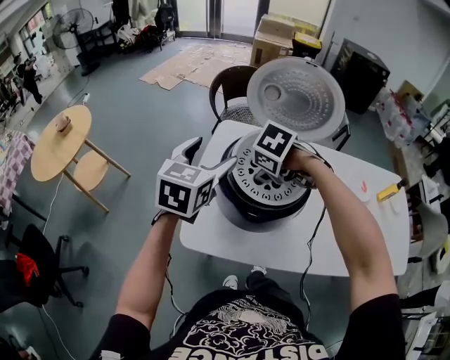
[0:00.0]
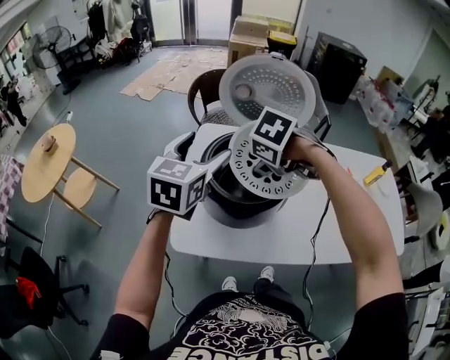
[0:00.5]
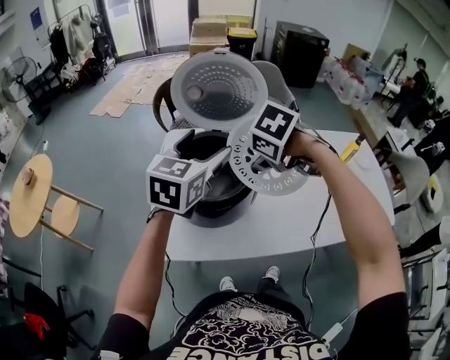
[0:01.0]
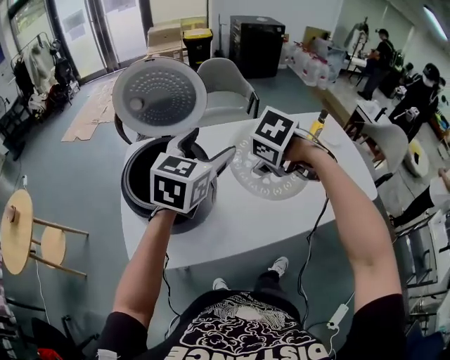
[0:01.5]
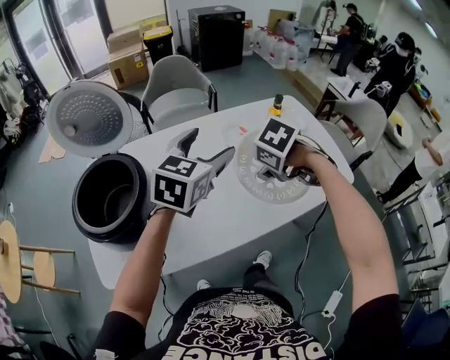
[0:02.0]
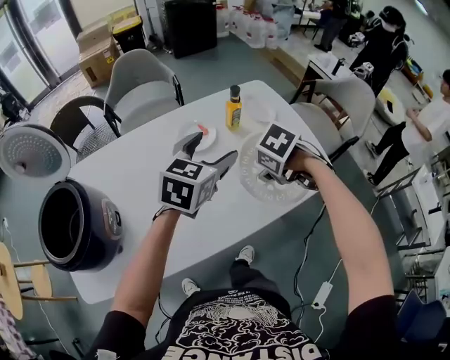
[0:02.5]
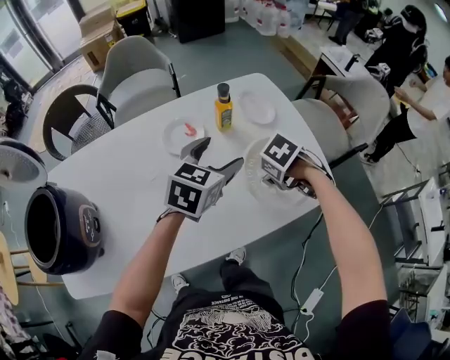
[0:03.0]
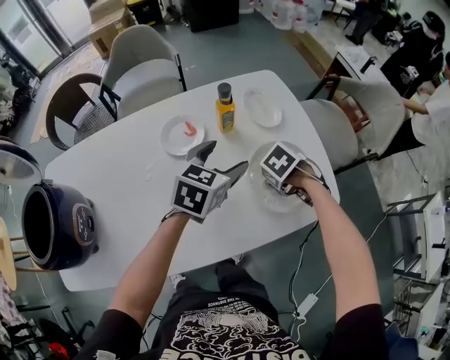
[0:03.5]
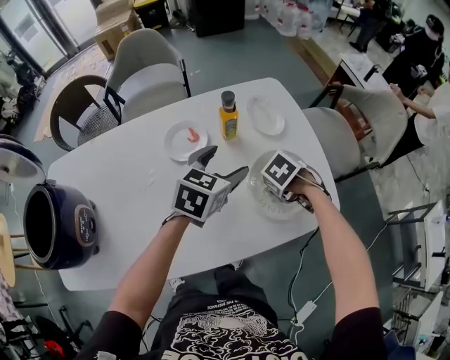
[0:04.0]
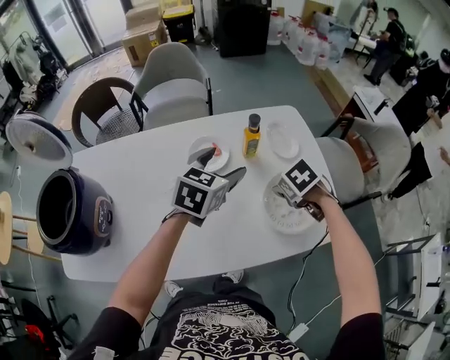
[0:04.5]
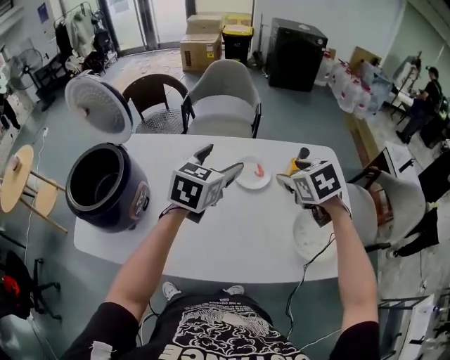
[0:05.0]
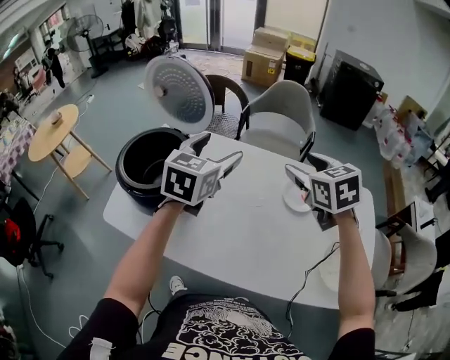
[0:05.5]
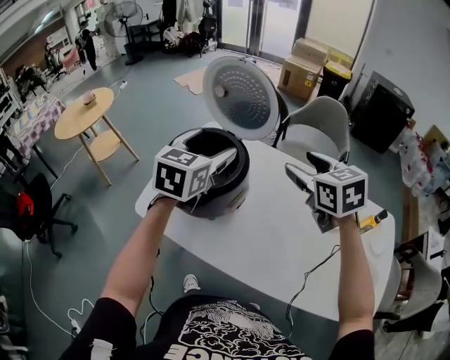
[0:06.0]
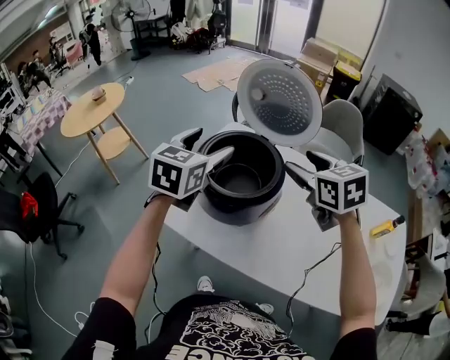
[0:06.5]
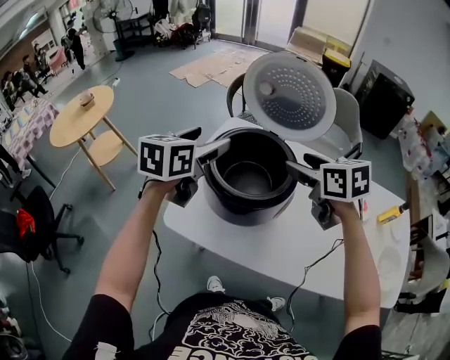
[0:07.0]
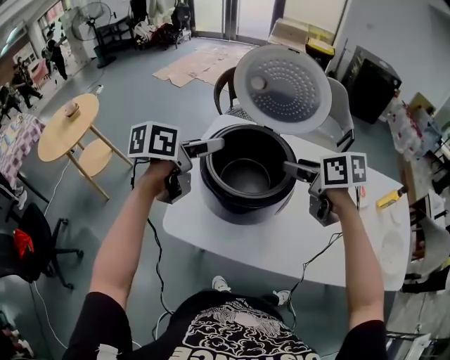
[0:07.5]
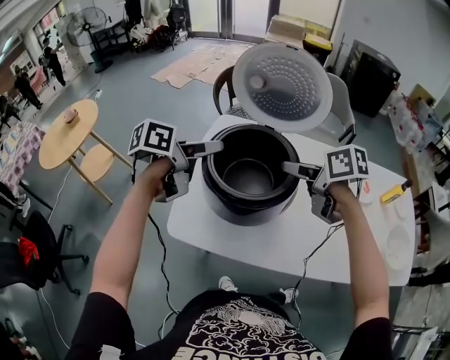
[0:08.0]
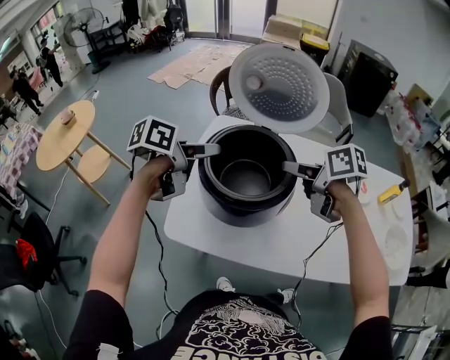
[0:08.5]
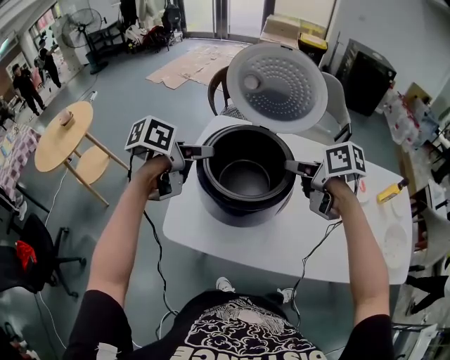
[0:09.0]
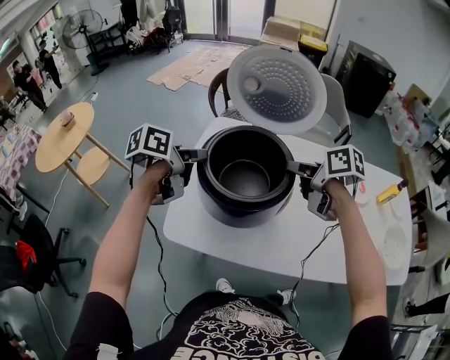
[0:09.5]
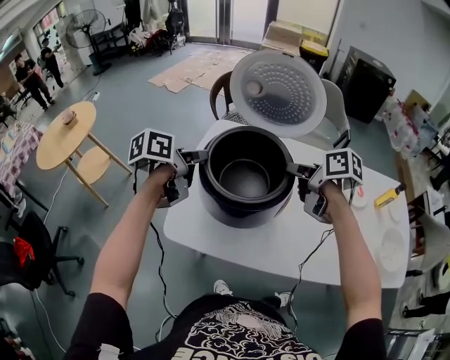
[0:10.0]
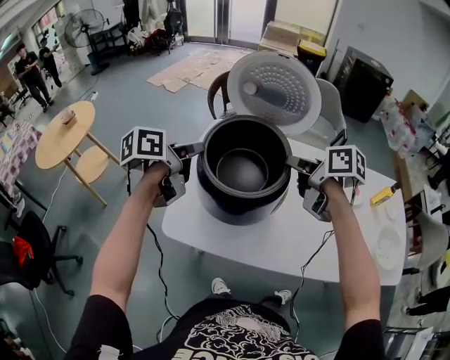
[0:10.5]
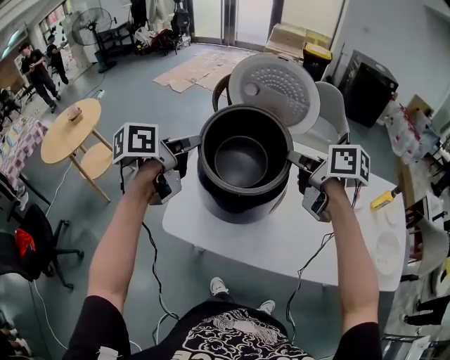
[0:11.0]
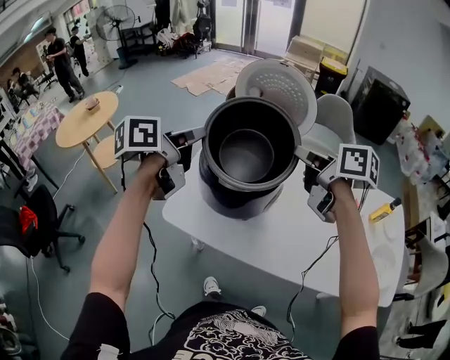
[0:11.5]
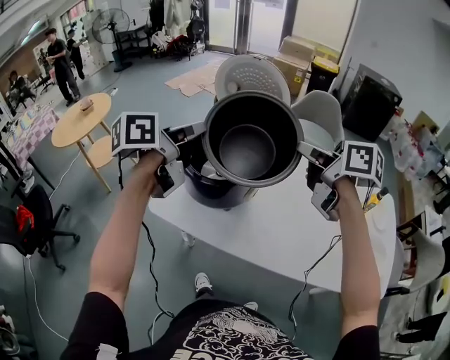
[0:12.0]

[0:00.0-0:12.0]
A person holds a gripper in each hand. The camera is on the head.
0:00.0 to 0:02.0: The pair of grippers is taken about 60 cm. The left gripper changes its angle by approximately 40 degrees. The right gripper rotates approximately 40 degrees.
0:02.0 to 0:04.0: The pair of grippers is taken about 40 cm.
0:04.0 to 0:06.0: Both grippers are carried about 60 cm. The right gripper points its fingers some 60 degrees further upward. The left gripper rotates approximately 50 degrees.
0:06.0 to 0:08.0: The grippers both shift to the left by approximately 25 cm. The left gripper swivels approximately 60 degrees. Meanwhile the right gripper twists approximately 40 degrees clockwise, seen from behind.
0:08.0 to 0:10.0: The left gripper closes, while the right gripper closes its fingers.
0:10.0 to 0:12.0: The left gripper travels upward, backward and to the right by about 25 cm, and turns by about 20 degrees. The right gripper shifts approximately 25 cm upward, to the right and backward.

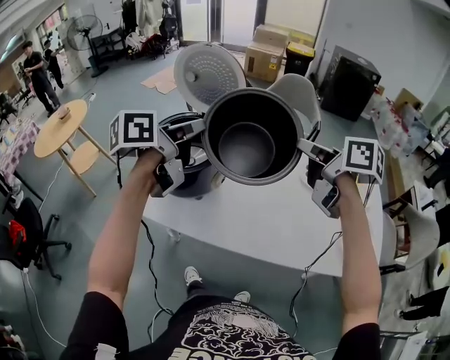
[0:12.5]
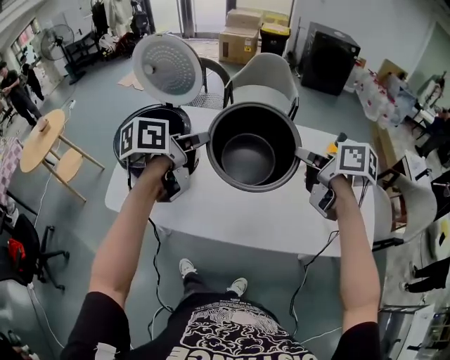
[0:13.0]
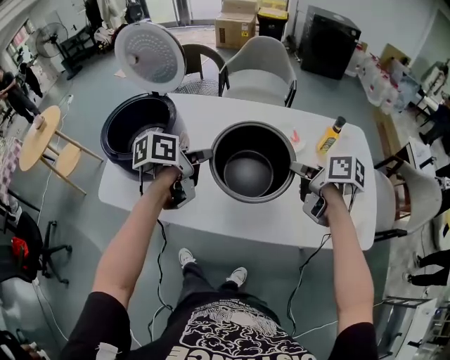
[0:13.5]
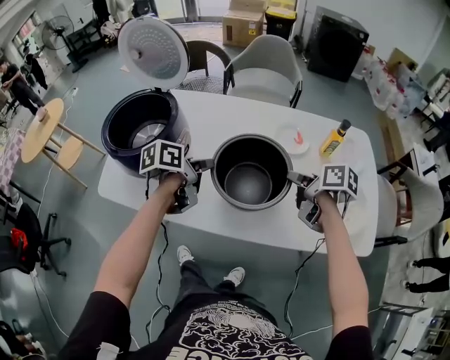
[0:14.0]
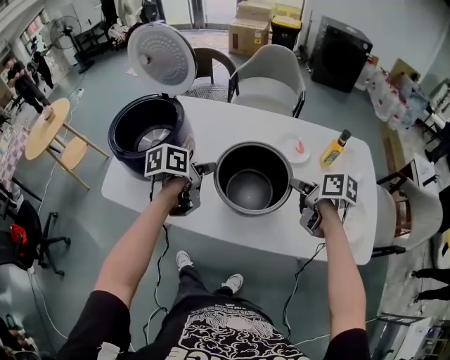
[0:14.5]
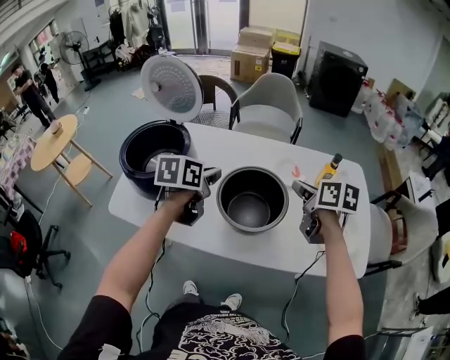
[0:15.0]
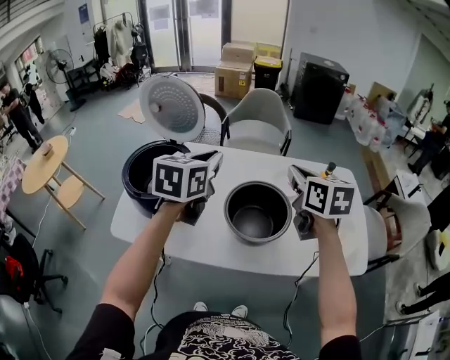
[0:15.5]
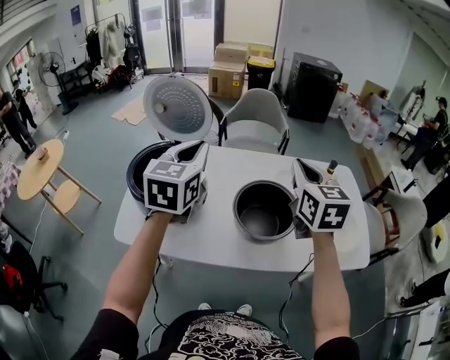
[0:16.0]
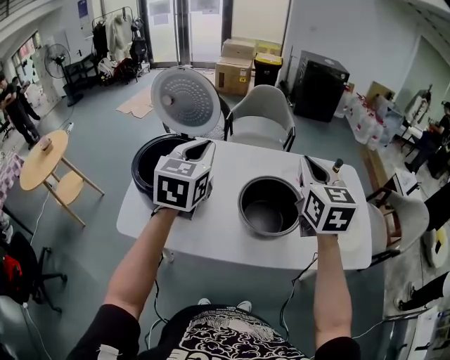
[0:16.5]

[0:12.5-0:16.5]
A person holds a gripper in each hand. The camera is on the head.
0:12.5 to 0:14.5: The two grippers go approximately 35 cm downward and to the right. The right gripper rotates roughly 20 degrees. Meanwhile the left gripper turns by some 20 degrees.
0:14.5 to 0:16.5: The grippers both shift upward and to the left by about 30 cm. The left gripper rolls clockwise, seen from behind, by some 50 degrees. The right gripper swivels about 60 degrees.

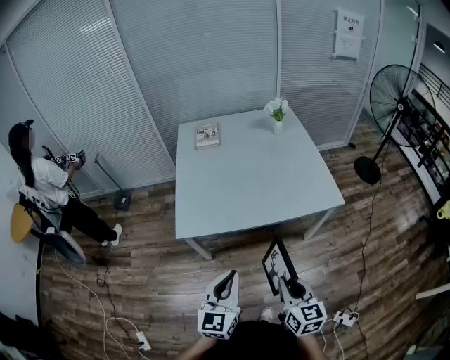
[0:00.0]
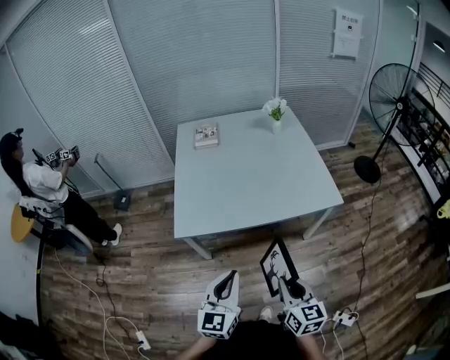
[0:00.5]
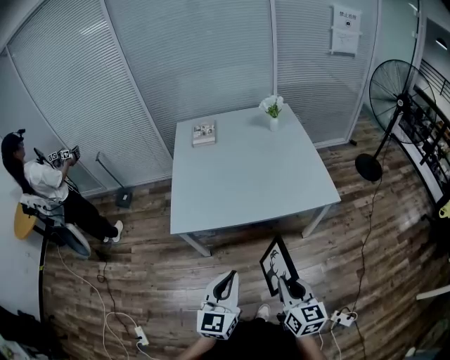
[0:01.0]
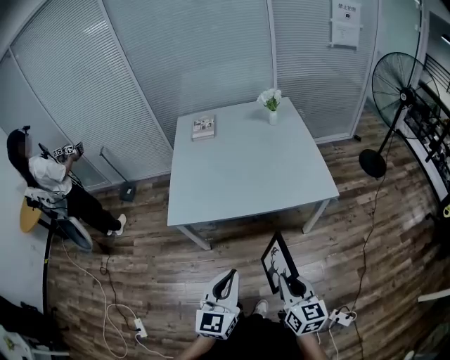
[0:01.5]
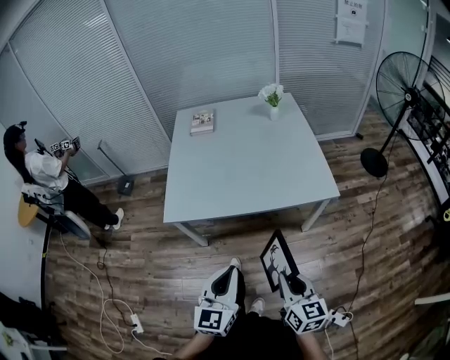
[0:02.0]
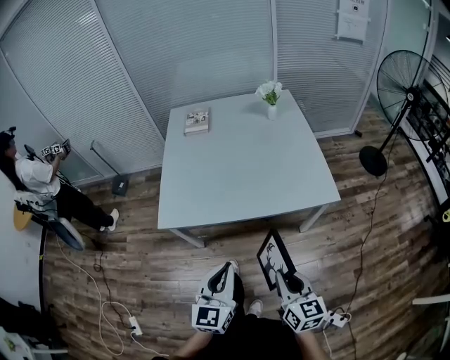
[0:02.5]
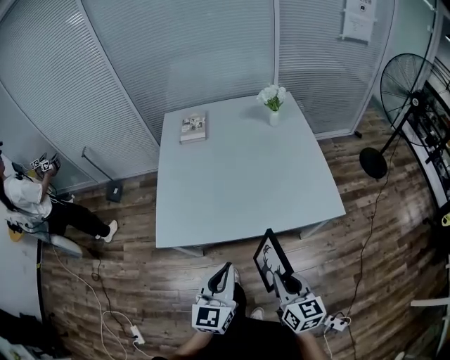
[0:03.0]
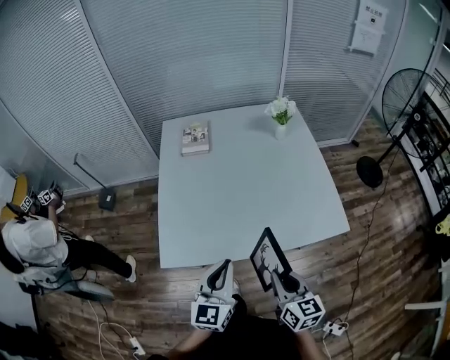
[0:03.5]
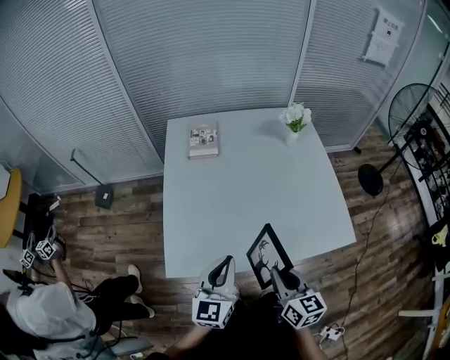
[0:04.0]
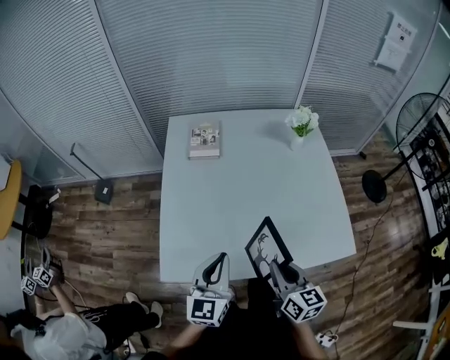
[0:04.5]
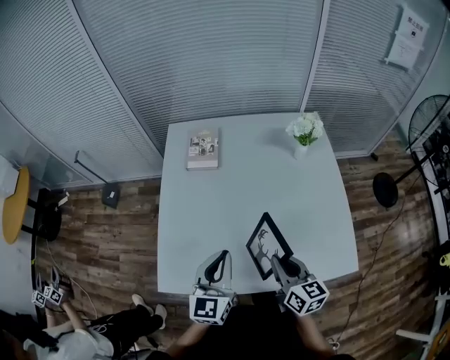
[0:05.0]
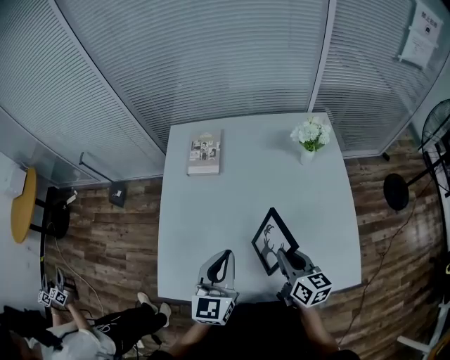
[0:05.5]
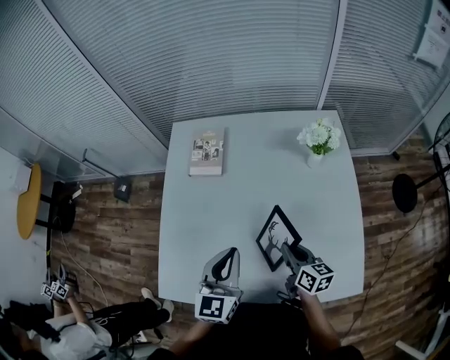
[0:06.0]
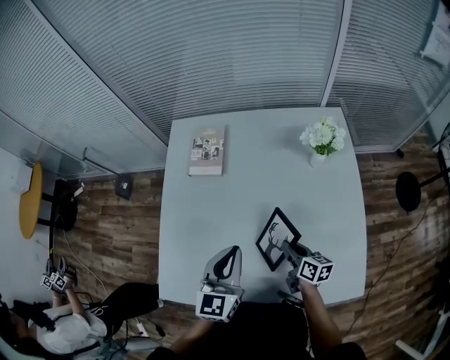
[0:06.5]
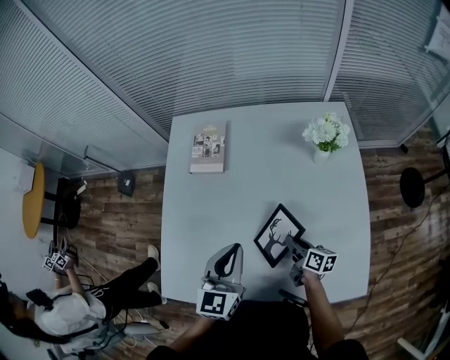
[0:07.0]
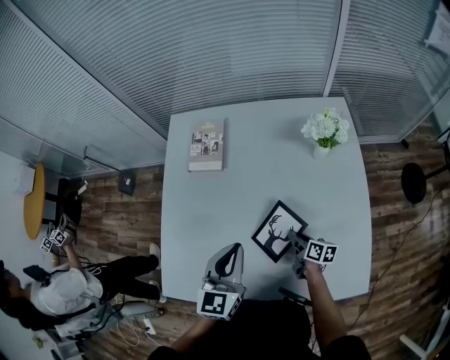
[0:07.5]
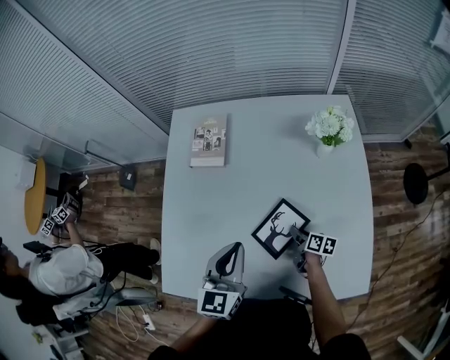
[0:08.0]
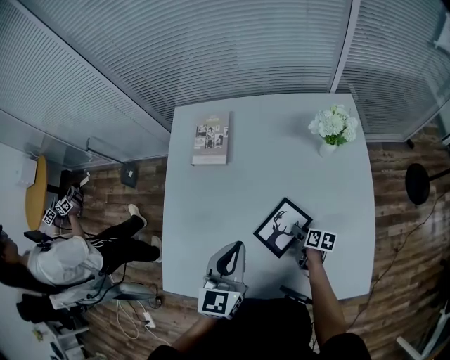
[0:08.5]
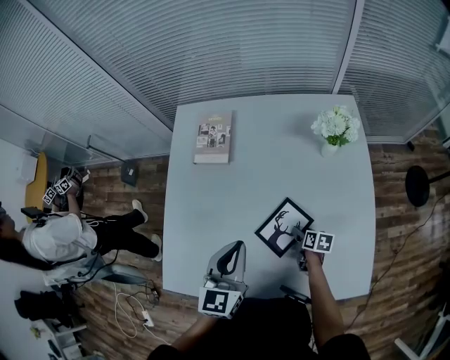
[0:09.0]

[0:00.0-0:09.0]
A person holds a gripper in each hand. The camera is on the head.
0:00.0 to 0:02.0: The two grippers go roughly 10 cm to the right.
0:02.0 to 0:04.5: The two grippers travel together, forward, about 40 cm.
0:04.5 to 0:07.0: The right gripper moves forward, downward and to the right, about 35 cm, and changes its angle by roughly 40 degrees; the left gripper heads forward and to the right, covering roughly 25 cm.
0:07.0 to 0:09.0: The right gripper moves downward, about 10 cm, swivels about 30 degrees, and opens up.

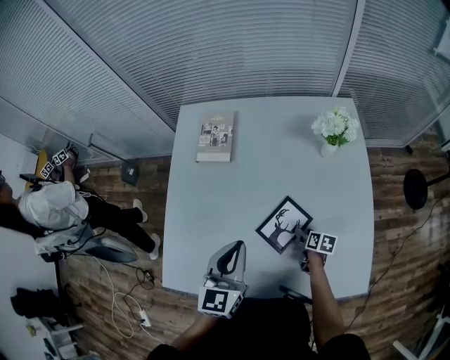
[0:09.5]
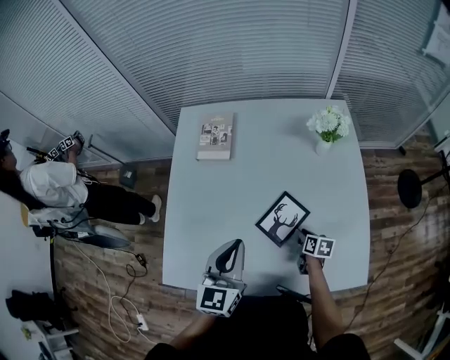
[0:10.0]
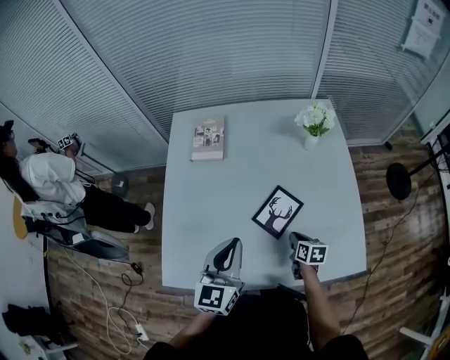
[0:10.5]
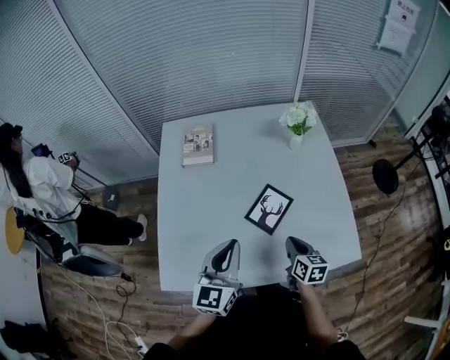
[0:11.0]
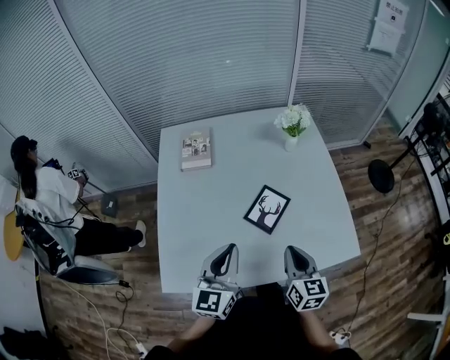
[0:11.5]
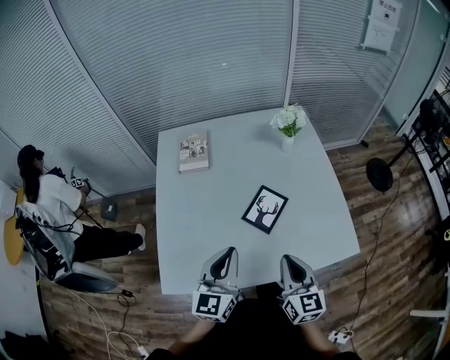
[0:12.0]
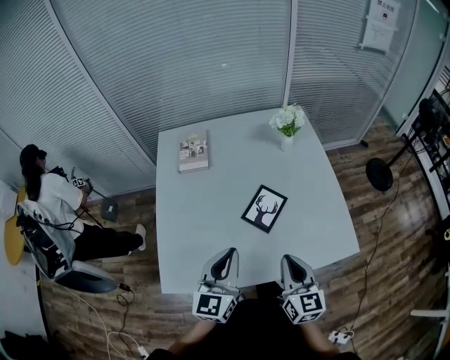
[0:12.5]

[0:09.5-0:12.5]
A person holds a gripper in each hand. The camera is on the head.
0:09.5 to 0:11.0: The left gripper is displaced backward by roughly 10 cm. Meanwhile the right gripper moves upward and backward, some 25 cm, rotates roughly 30 degrees, and closes.
0:11.0 to 0:12.5: The right gripper moves upward and backward, approximately 15 cm, and turns by about 20 degrees; the left gripper travels backward by approximately 5 cm.
